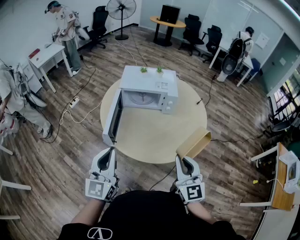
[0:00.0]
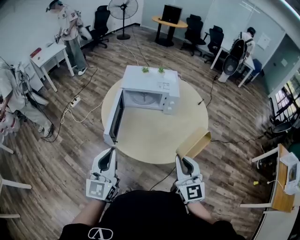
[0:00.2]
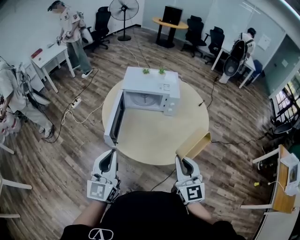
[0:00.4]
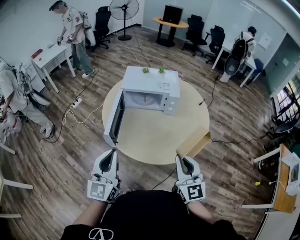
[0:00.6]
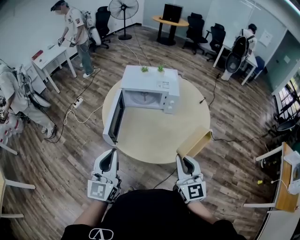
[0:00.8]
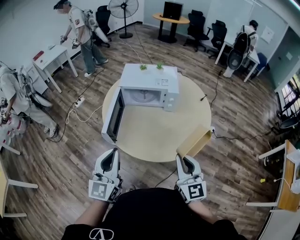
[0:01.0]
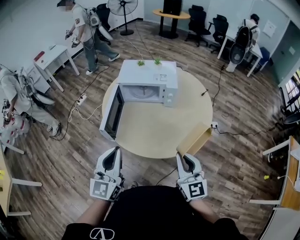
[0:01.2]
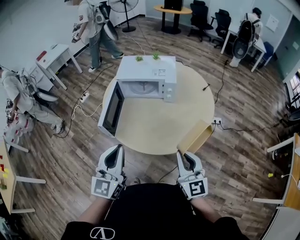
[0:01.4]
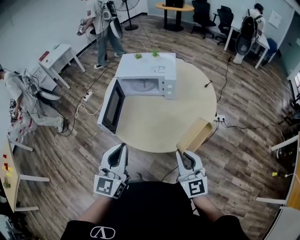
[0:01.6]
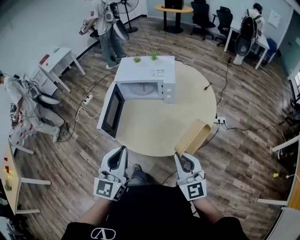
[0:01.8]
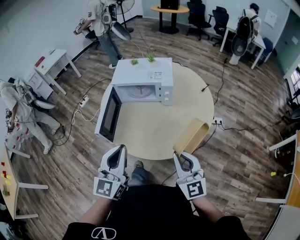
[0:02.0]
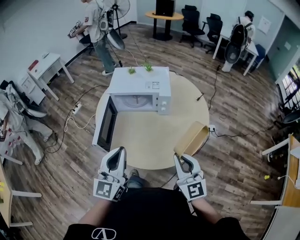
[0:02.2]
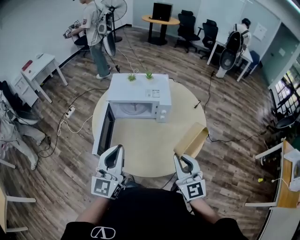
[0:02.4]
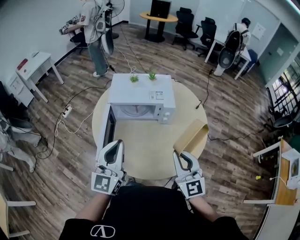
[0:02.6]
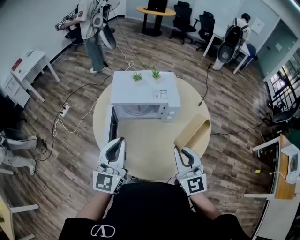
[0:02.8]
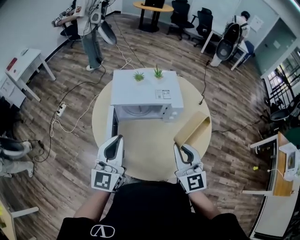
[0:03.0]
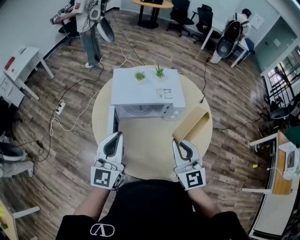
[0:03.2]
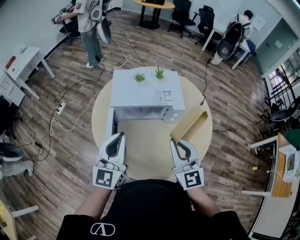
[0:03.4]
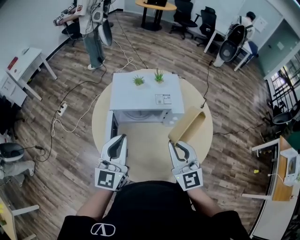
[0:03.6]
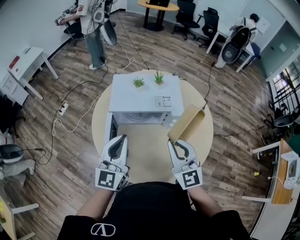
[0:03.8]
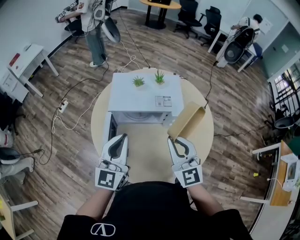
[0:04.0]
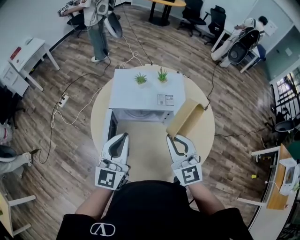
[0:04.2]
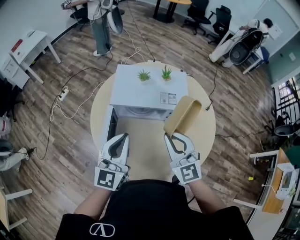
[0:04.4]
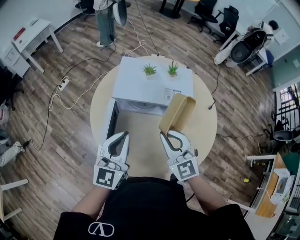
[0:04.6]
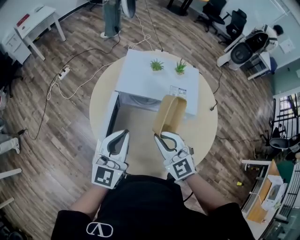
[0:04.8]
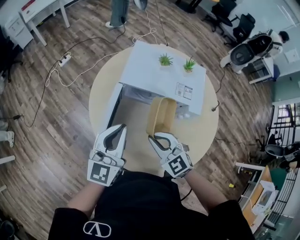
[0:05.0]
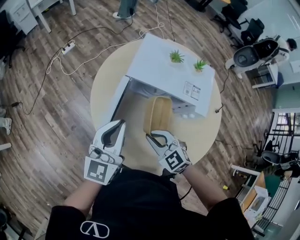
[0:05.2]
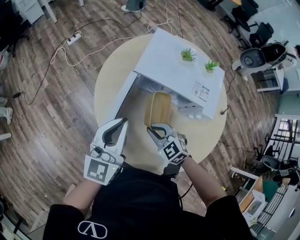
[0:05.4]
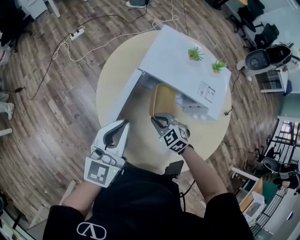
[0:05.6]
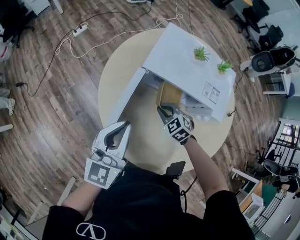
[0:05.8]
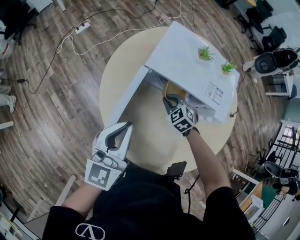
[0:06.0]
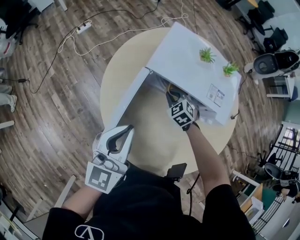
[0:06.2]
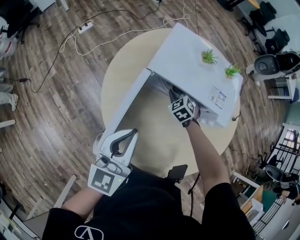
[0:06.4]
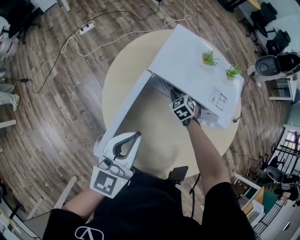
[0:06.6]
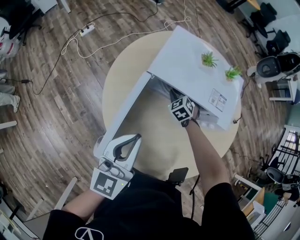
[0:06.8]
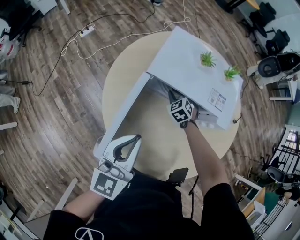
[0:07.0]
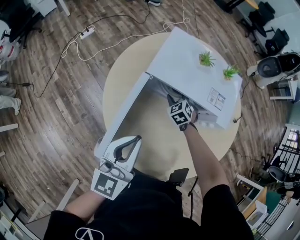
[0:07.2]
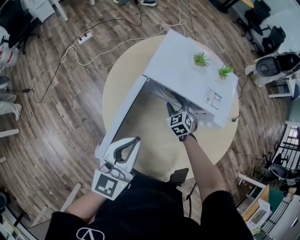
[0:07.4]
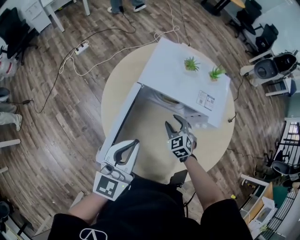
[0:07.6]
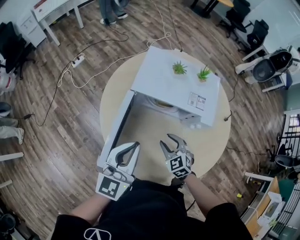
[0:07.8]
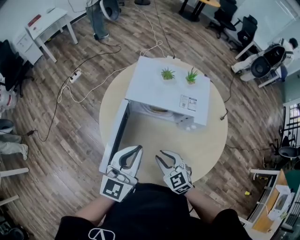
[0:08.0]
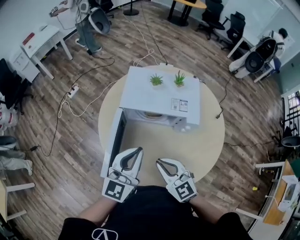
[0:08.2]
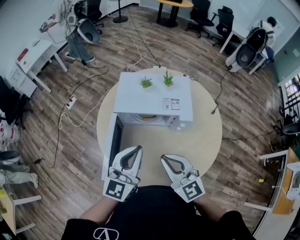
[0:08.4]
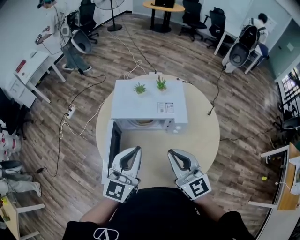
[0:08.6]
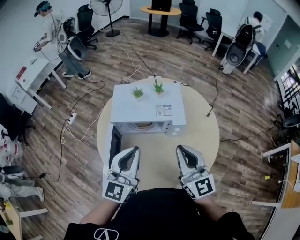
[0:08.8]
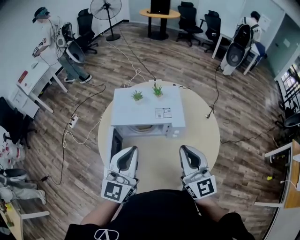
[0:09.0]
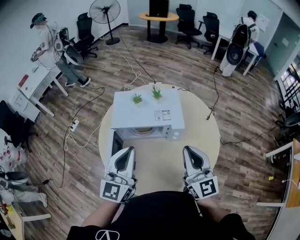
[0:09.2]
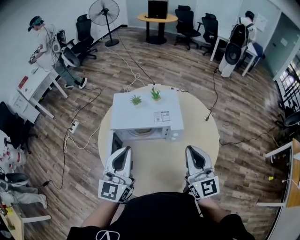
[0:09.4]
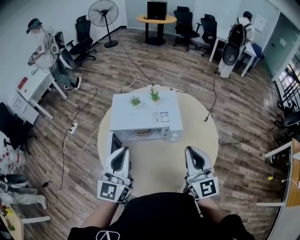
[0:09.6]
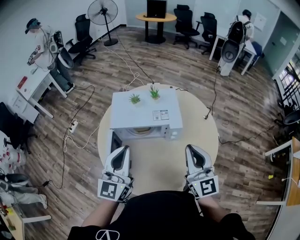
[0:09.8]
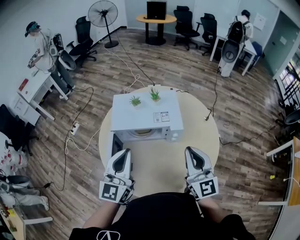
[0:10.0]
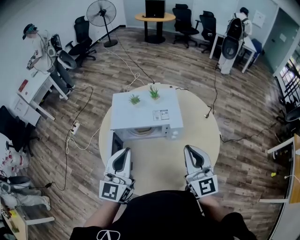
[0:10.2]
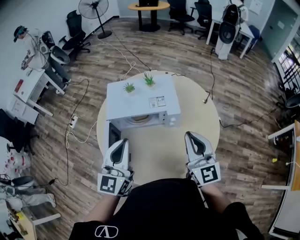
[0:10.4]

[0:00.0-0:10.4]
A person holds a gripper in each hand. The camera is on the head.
0:00.0 to 0:01.4: The right gripper travels to the right and downward by approximately 10 cm. The left gripper shifts roughly 10 cm to the right.
0:01.4 to 0:03.0: Both grippers travel together forward and to the left, some 30 cm.
0:03.0 to 0:04.4: The left gripper is displaced forward by some 5 cm. The right gripper heads forward, covering roughly 10 cm.
0:04.4 to 0:06.0: The left gripper goes some 10 cm downward; the right gripper is displaced downward by some 30 cm, and tips its fingers downward by roughly 40 degrees.
0:06.0 to 0:07.4: The right gripper opens.
0:07.4 to 0:09.0: The left gripper heads upward and to the right, covering roughly 20 cm, and swivels approximately 20 degrees, while the right gripper shifts some 40 cm upward and backward, tips its fingers upward by some 60 degrees, and closes.
0:09.0 to 0:10.4: The grippers make only small movements.

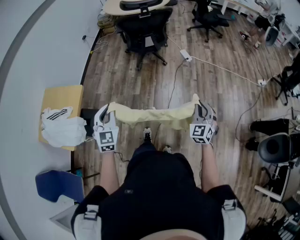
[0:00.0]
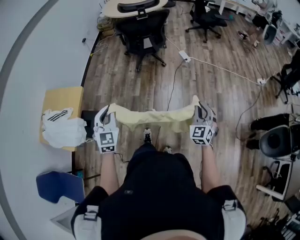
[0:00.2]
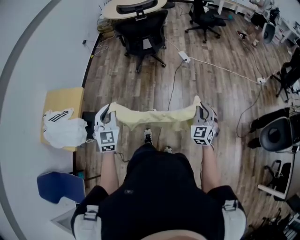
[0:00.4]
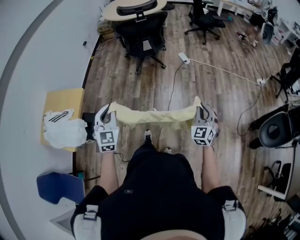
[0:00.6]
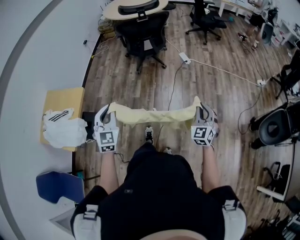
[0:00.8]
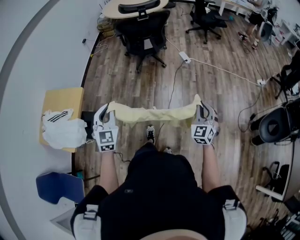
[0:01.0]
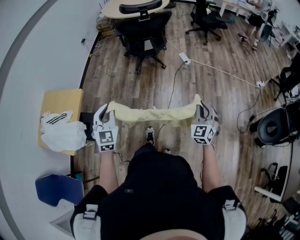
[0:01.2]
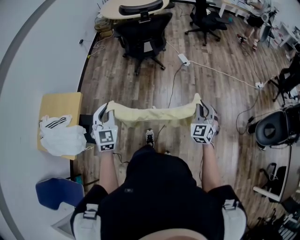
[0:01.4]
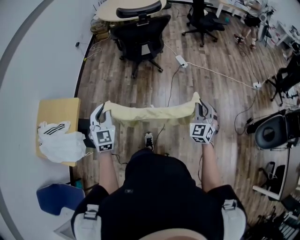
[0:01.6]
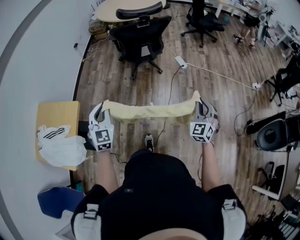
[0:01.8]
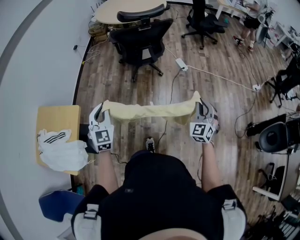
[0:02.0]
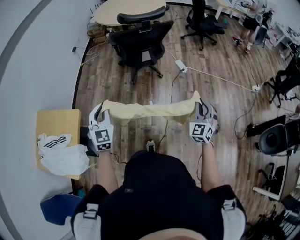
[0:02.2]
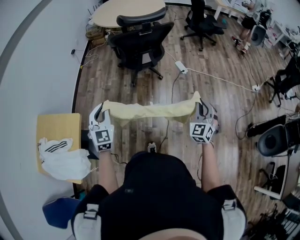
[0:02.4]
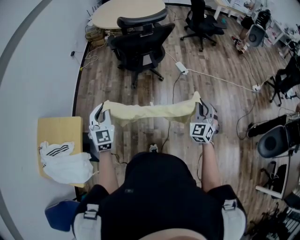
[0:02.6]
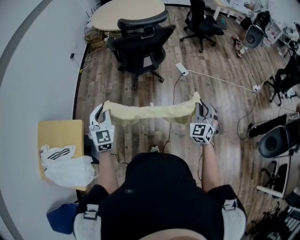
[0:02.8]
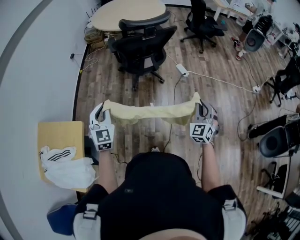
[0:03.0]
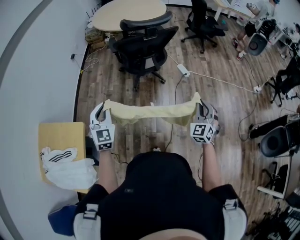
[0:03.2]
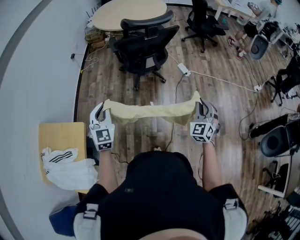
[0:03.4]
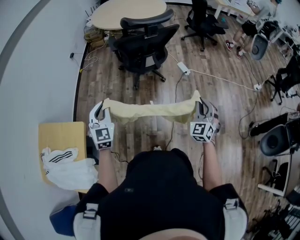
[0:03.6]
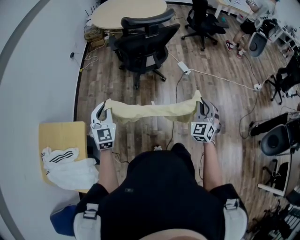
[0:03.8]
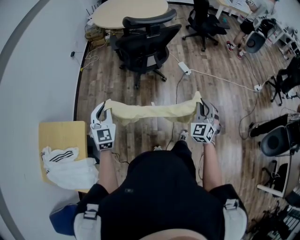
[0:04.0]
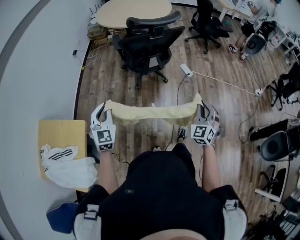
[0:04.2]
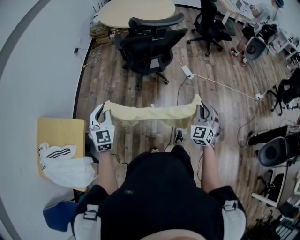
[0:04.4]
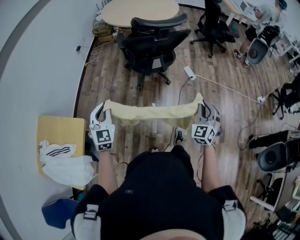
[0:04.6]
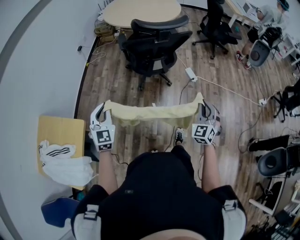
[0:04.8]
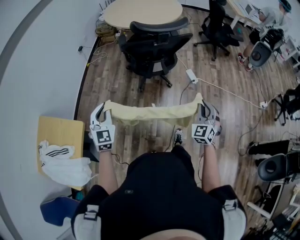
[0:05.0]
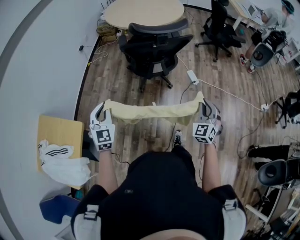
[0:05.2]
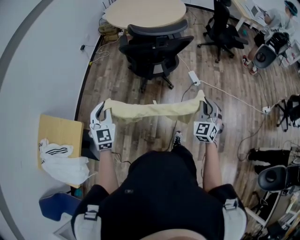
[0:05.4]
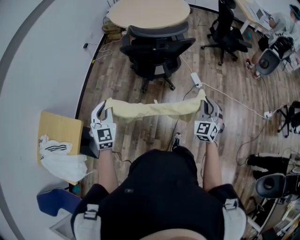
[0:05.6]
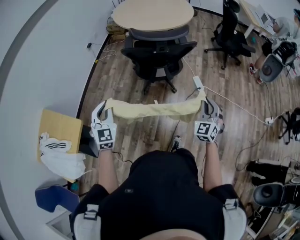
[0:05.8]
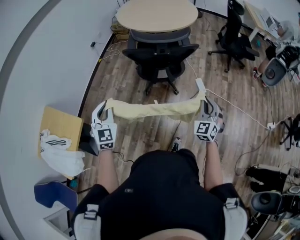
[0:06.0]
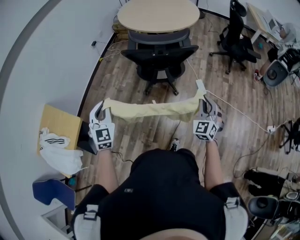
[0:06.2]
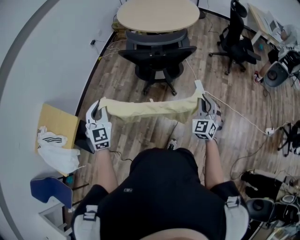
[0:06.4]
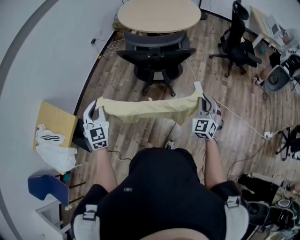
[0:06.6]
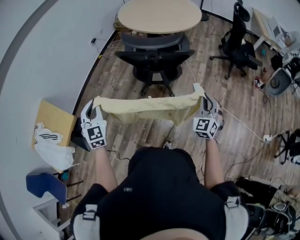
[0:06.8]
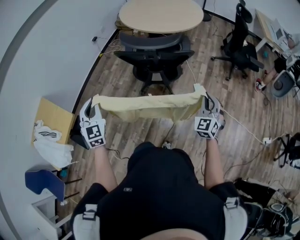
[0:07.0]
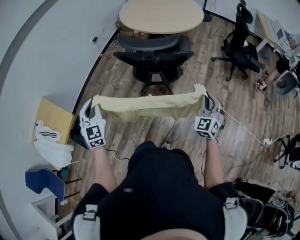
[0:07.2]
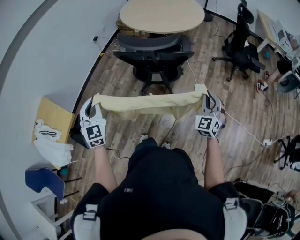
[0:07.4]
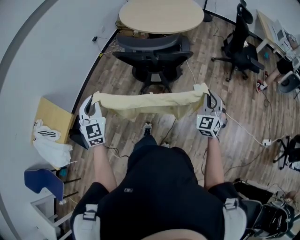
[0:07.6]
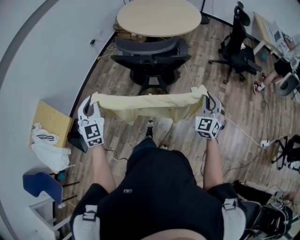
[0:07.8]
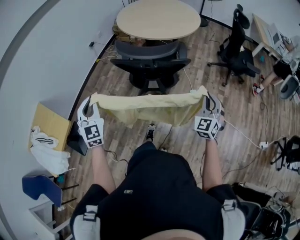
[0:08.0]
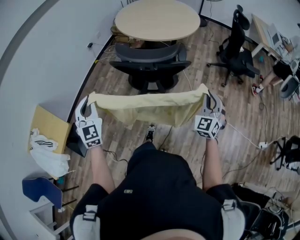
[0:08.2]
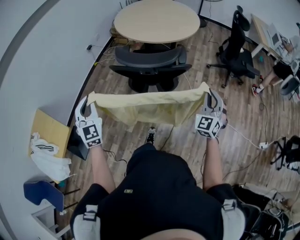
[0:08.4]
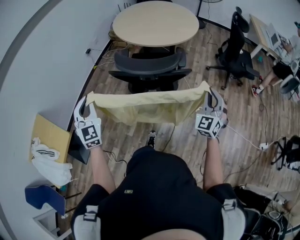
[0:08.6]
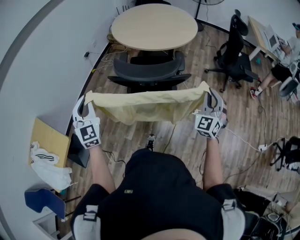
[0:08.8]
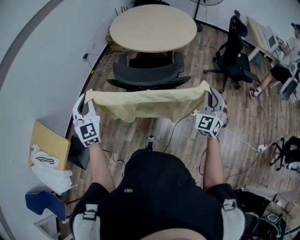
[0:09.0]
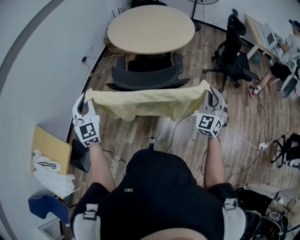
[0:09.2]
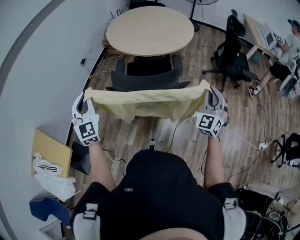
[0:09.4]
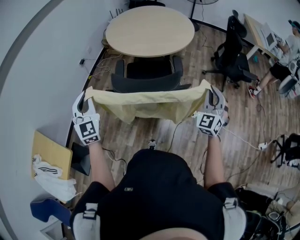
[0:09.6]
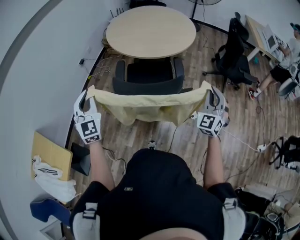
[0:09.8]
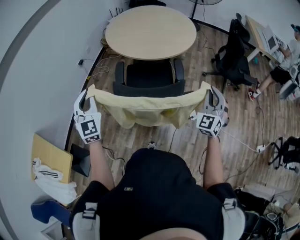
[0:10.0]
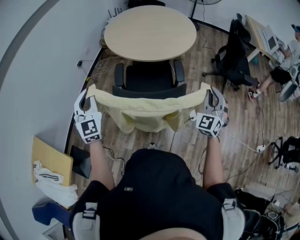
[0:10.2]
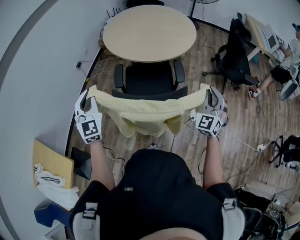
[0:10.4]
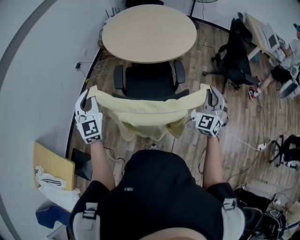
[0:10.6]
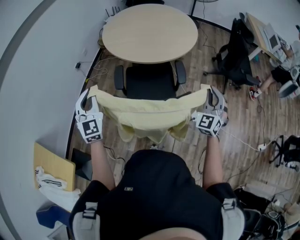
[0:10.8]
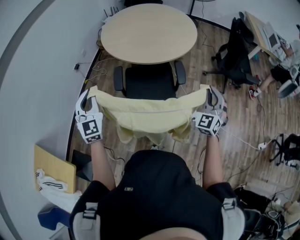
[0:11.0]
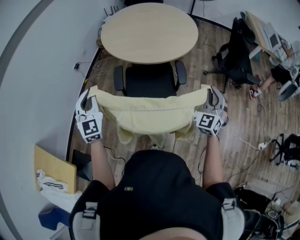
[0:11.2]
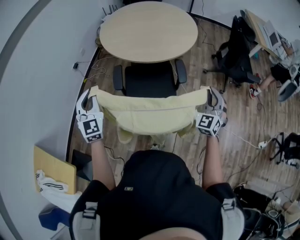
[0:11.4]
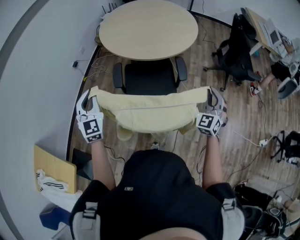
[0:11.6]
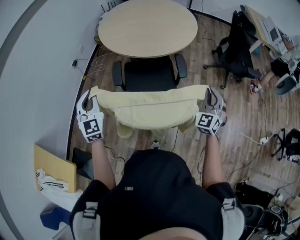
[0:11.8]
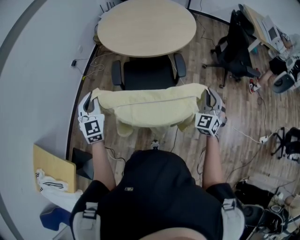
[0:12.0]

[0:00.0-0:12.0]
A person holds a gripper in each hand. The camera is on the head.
0:00.0 to 0:01.6: The two grippers go approximately 10 cm forward.
0:01.6 to 0:03.0: Both grippers travel together forward and to the left, about 20 cm.
0:03.0 to 0:04.4: The right gripper moves about 5 cm.
0:04.4 to 0:06.0: The right gripper is displaced forward and to the right by about 25 cm. The left gripper shifts some 15 cm to the right and forward.
0:06.0 to 0:07.6: The left gripper moves to the right, approximately 5 cm. The right gripper heads to the right and forward, covering approximately 15 cm.
0:07.6 to 0:09.0: The right gripper heads forward and upward, covering about 15 cm, while the left gripper goes roughly 15 cm forward.
0:09.0 to 0:10.4: The grippers both shift forward by about 15 cm.
0:10.4 to 0:12.0: The grippers both shift downward by roughly 10 cm.

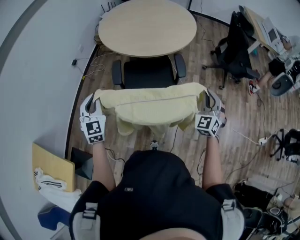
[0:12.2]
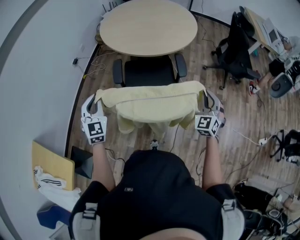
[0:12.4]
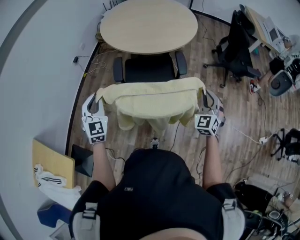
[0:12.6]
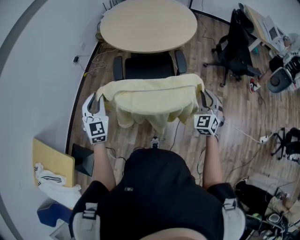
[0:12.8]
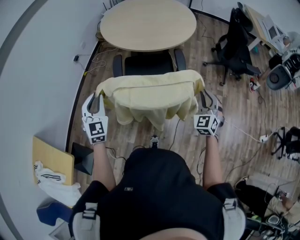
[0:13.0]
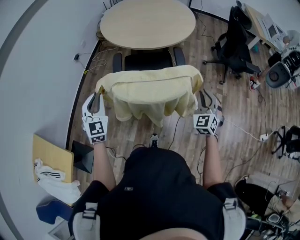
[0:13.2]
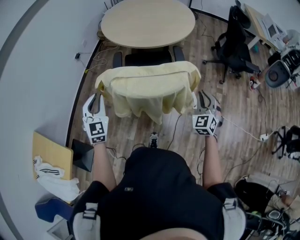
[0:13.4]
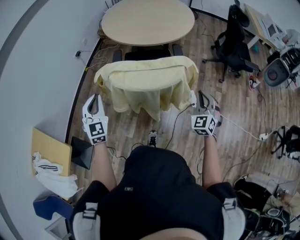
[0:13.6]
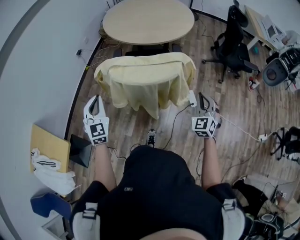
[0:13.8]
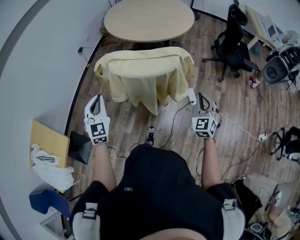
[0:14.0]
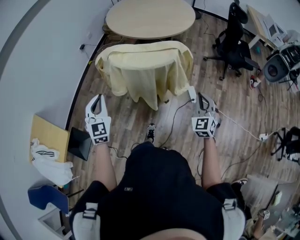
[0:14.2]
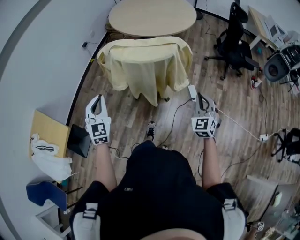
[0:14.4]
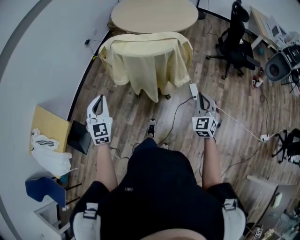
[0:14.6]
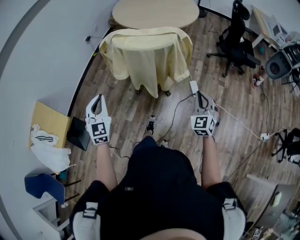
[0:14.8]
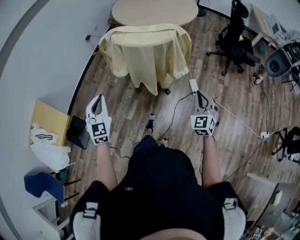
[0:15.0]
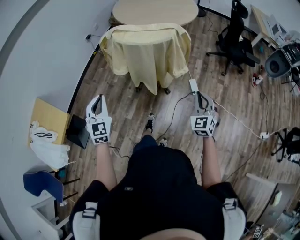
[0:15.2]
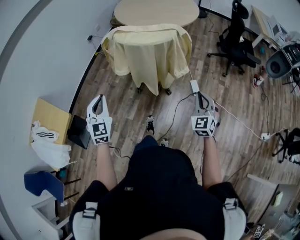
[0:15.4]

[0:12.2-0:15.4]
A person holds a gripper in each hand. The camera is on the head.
0:12.2 to 0:13.8: Both grippers move backward, approximately 15 cm.
0:13.8 to 0:15.4: The two grippers go some 20 cm backward.
